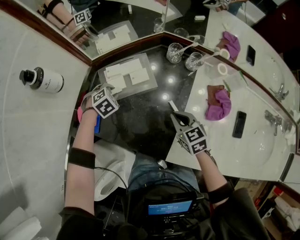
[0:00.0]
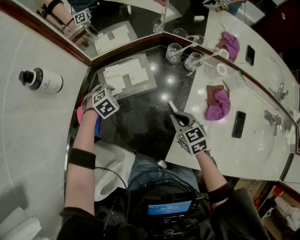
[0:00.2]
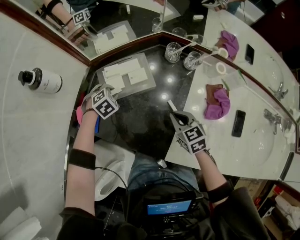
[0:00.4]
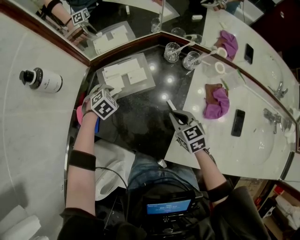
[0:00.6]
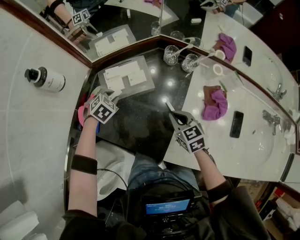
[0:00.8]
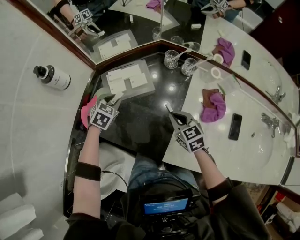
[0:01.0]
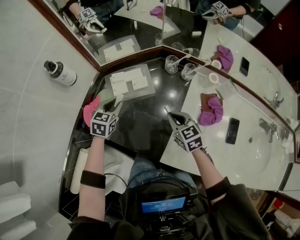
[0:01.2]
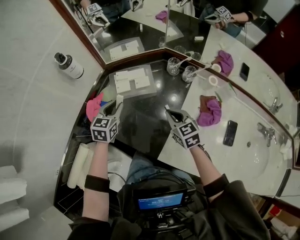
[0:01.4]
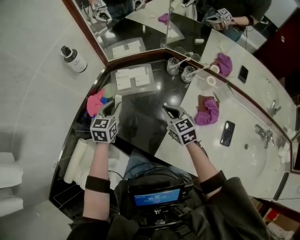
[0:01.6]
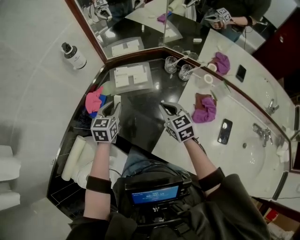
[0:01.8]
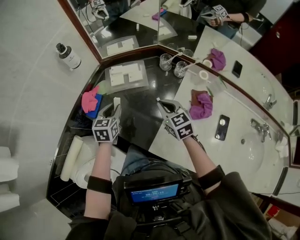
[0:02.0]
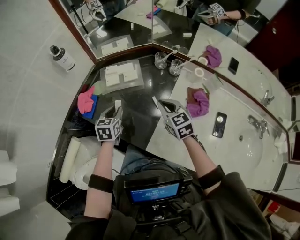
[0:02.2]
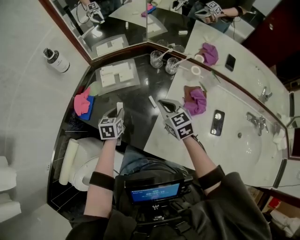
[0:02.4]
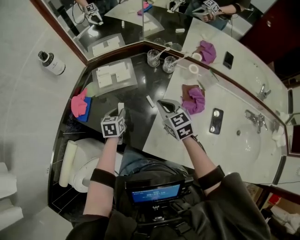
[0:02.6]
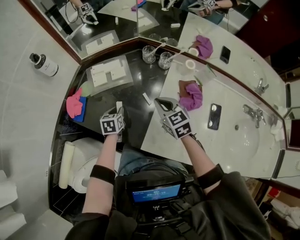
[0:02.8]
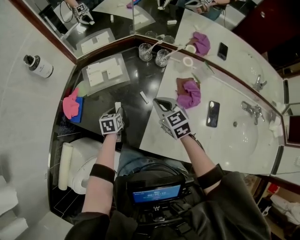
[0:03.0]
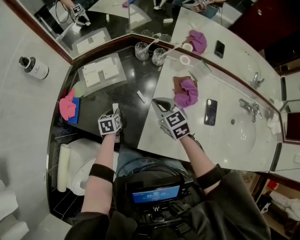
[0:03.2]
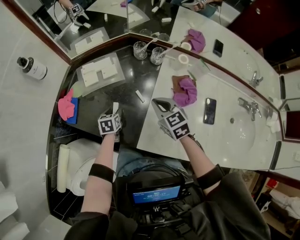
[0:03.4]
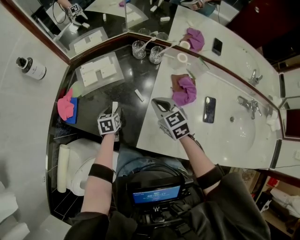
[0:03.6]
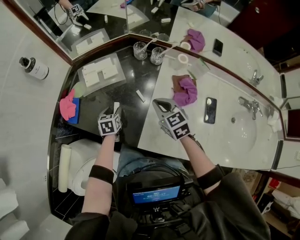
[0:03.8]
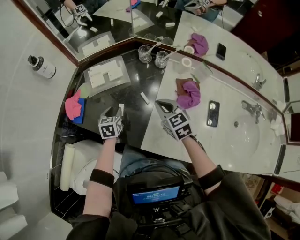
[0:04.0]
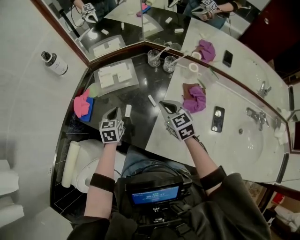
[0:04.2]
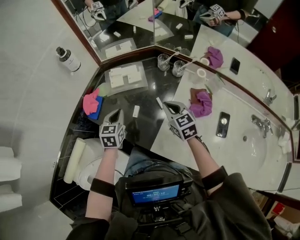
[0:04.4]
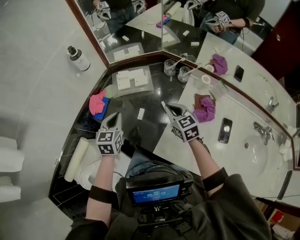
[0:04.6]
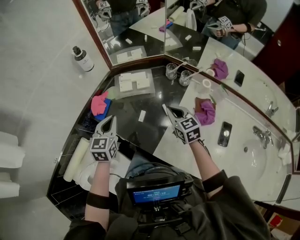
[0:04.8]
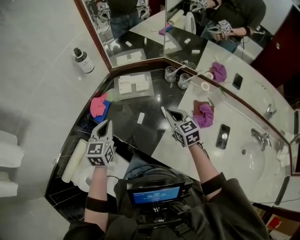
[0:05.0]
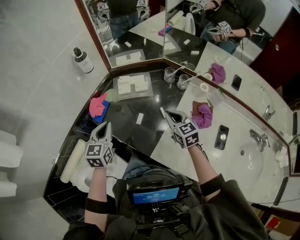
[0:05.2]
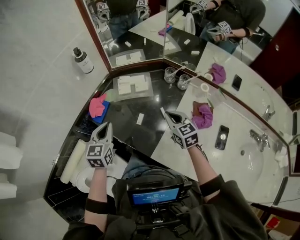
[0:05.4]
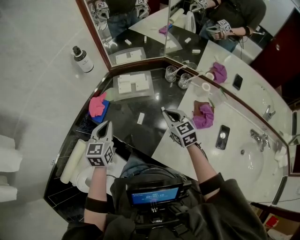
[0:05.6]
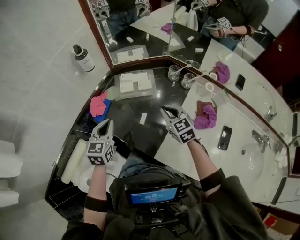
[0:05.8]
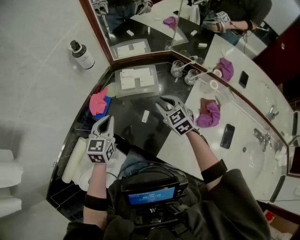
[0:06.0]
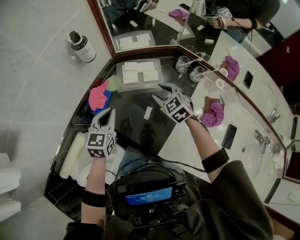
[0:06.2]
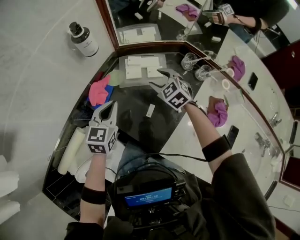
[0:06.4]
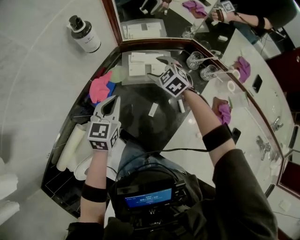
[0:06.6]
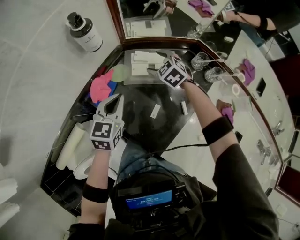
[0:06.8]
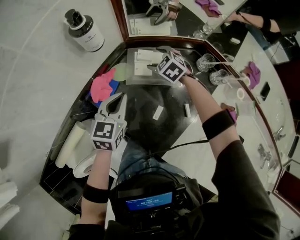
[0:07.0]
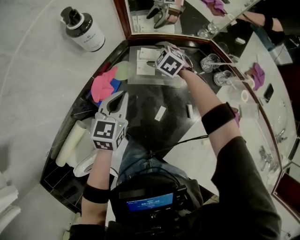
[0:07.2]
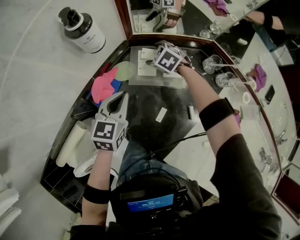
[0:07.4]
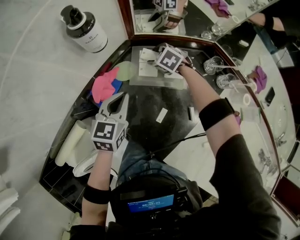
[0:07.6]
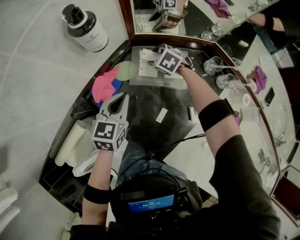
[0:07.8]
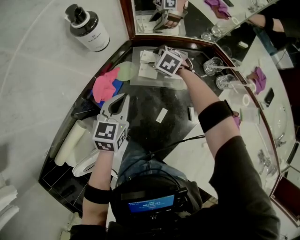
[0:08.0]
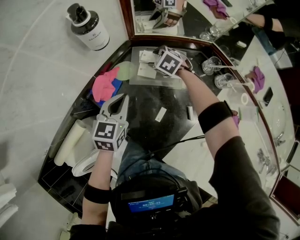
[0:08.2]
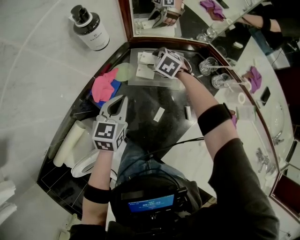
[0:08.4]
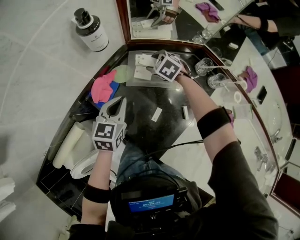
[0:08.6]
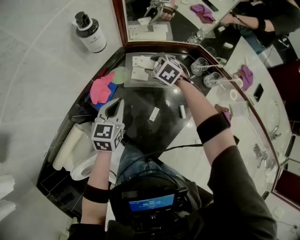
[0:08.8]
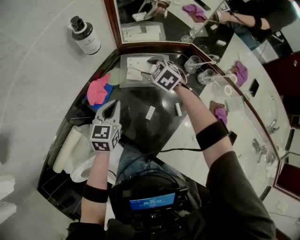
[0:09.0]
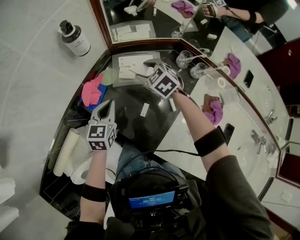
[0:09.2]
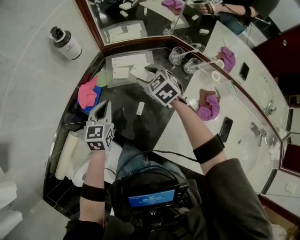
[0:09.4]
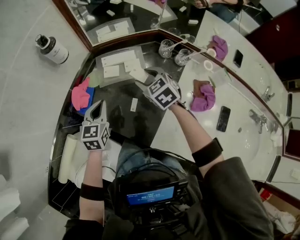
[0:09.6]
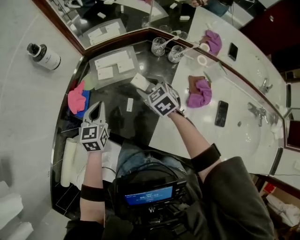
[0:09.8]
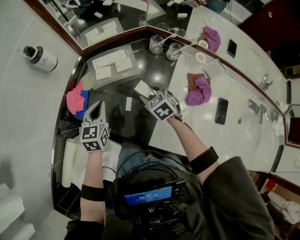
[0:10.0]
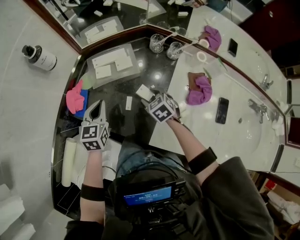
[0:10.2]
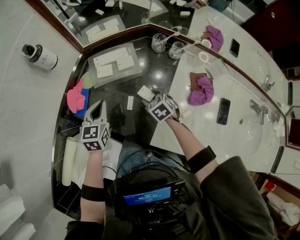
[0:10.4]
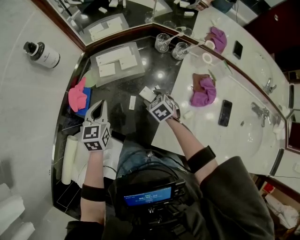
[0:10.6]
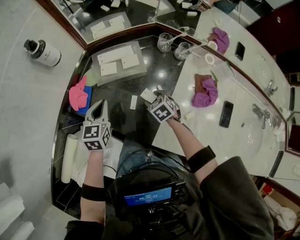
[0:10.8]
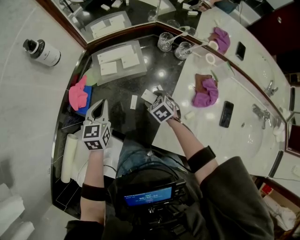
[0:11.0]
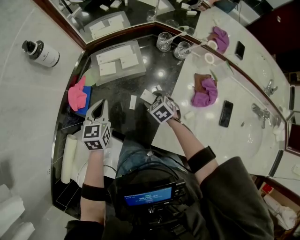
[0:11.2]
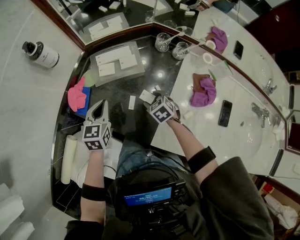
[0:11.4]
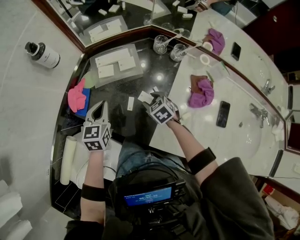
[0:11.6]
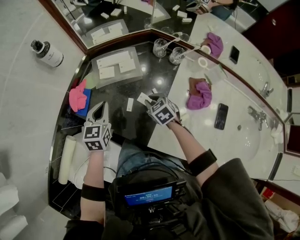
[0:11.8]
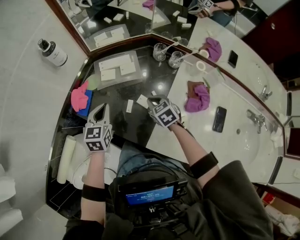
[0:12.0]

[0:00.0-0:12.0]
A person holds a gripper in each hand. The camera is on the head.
0:00.0 to 0:01.6: The right gripper goes approximately 10 cm upward; the left gripper shifts roughly 20 cm upward, and angles its fingers upward, by about 40 degrees.
0:01.6 to 0:03.0: The right gripper travels to the right by roughly 5 cm; the left gripper moves downward and to the right, approximately 20 cm, and changes its angle by approximately 30 degrees.
0:03.0 to 0:04.4: The left gripper shifts about 15 cm upward, and rotates approximately 20 degrees.
0:04.4 to 0:06.0: The right gripper is displaced forward and to the left by some 10 cm, while the left gripper travels to the left and upward by approximately 10 cm.
0:06.0 to 0:07.6: The left gripper moves forward and downward, some 15 cm; the right gripper heads forward and downward, covering roughly 30 cm, swivels roughly 40 degrees, and opens up.
0:07.6 to 0:09.0: The right gripper travels upward and backward by approximately 15 cm.
0:09.0 to 0:10.4: The right gripper moves backward, to the right and downward, roughly 25 cm, and rotates approximately 40 degrees. The left gripper goes roughly 5 cm to the right.
0:10.4 to 0:12.0: The right gripper is displaced upward by approximately 5 cm, and closes up.

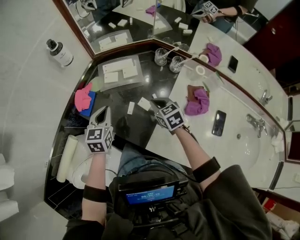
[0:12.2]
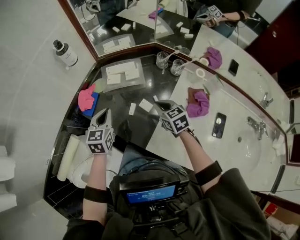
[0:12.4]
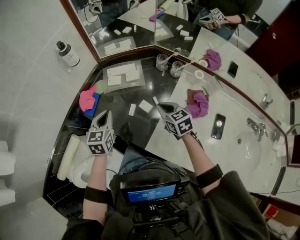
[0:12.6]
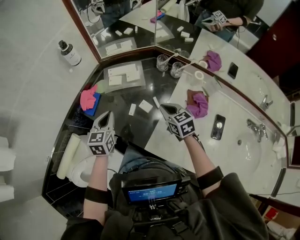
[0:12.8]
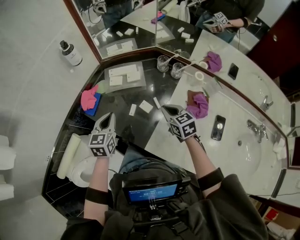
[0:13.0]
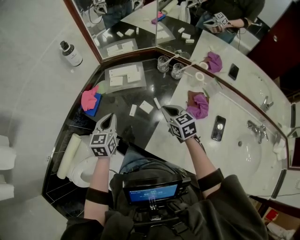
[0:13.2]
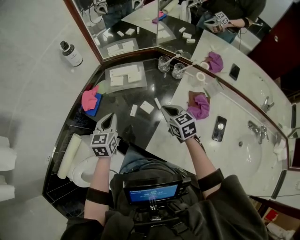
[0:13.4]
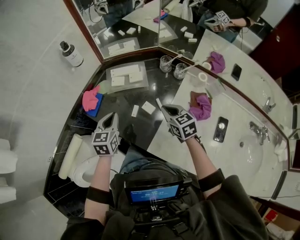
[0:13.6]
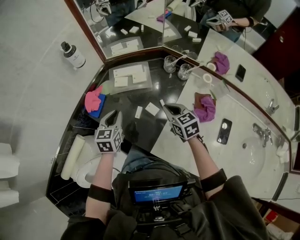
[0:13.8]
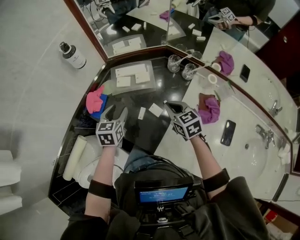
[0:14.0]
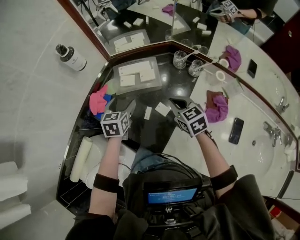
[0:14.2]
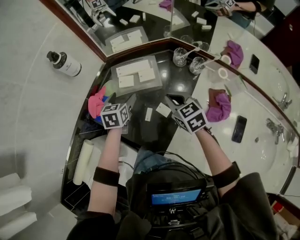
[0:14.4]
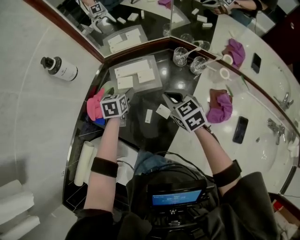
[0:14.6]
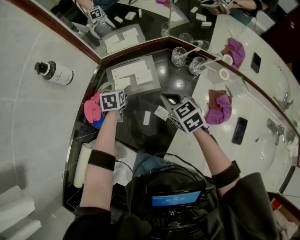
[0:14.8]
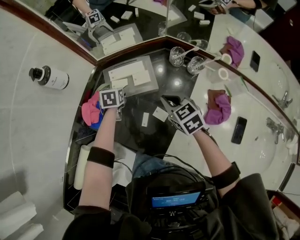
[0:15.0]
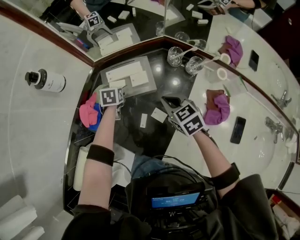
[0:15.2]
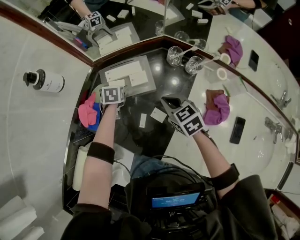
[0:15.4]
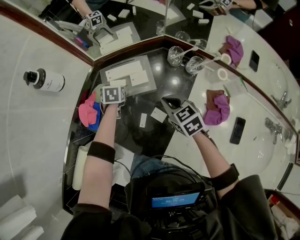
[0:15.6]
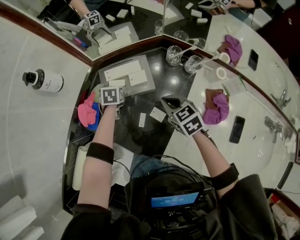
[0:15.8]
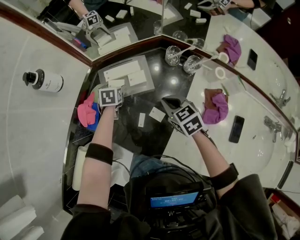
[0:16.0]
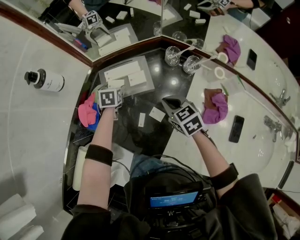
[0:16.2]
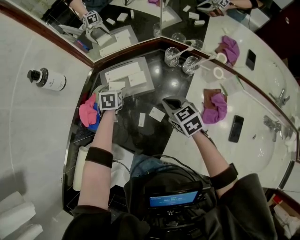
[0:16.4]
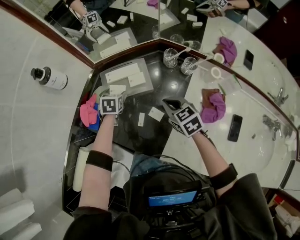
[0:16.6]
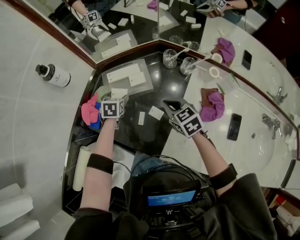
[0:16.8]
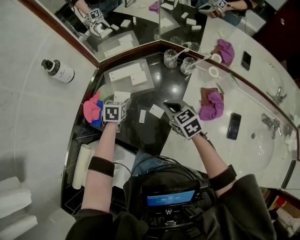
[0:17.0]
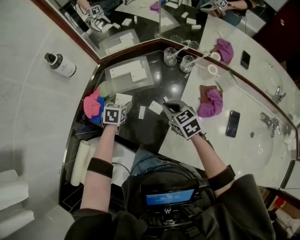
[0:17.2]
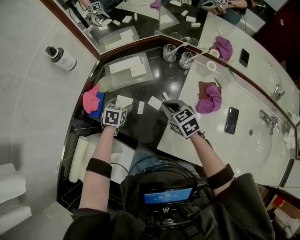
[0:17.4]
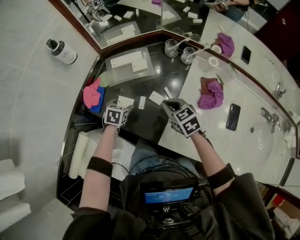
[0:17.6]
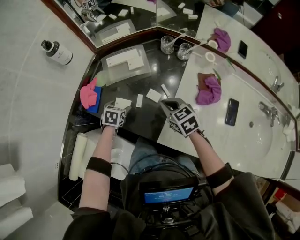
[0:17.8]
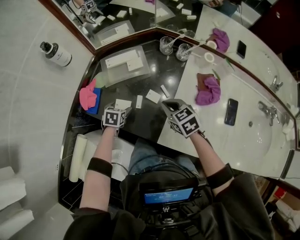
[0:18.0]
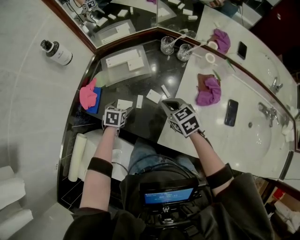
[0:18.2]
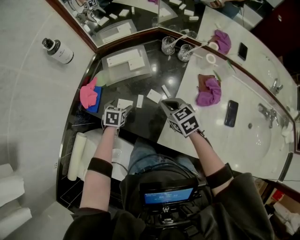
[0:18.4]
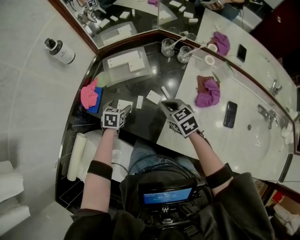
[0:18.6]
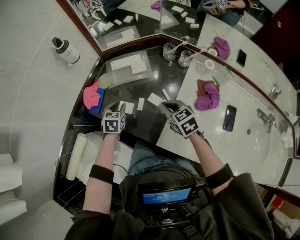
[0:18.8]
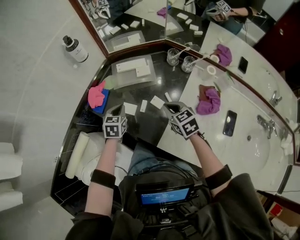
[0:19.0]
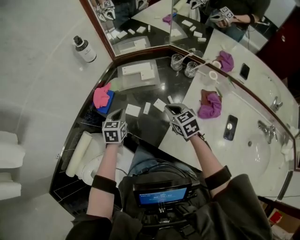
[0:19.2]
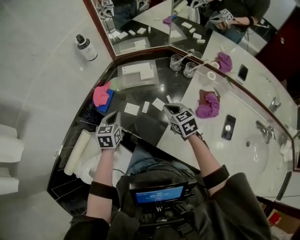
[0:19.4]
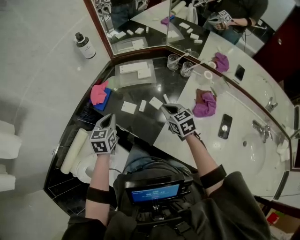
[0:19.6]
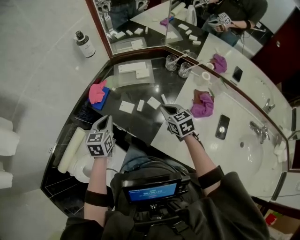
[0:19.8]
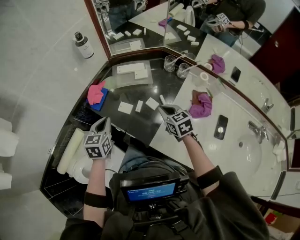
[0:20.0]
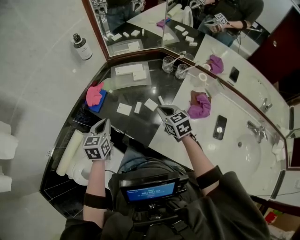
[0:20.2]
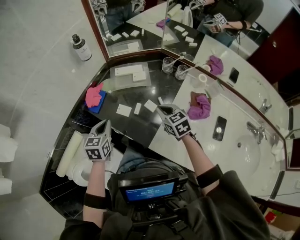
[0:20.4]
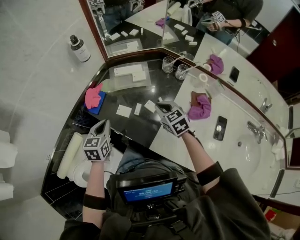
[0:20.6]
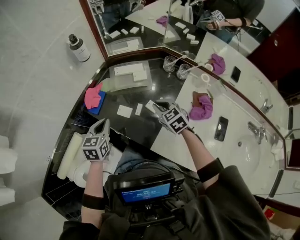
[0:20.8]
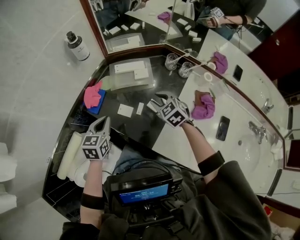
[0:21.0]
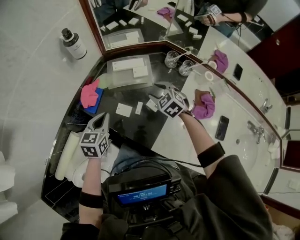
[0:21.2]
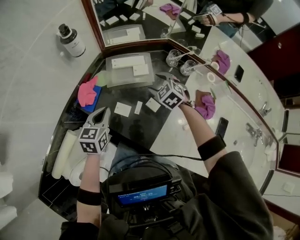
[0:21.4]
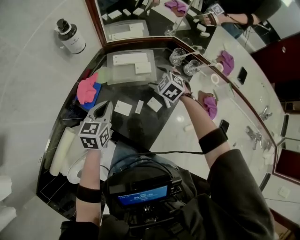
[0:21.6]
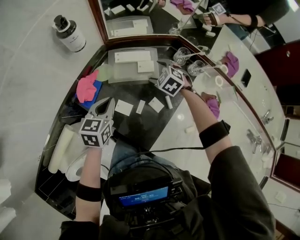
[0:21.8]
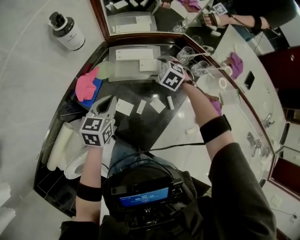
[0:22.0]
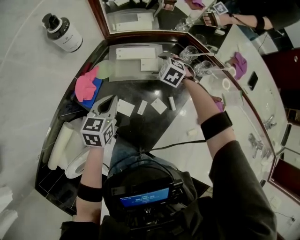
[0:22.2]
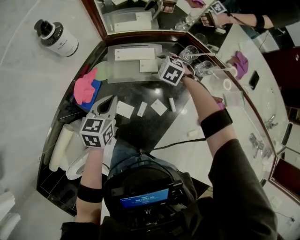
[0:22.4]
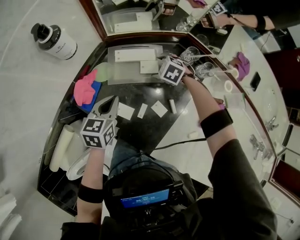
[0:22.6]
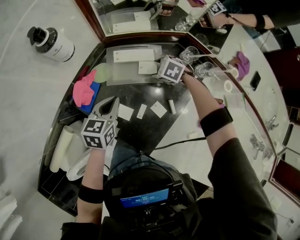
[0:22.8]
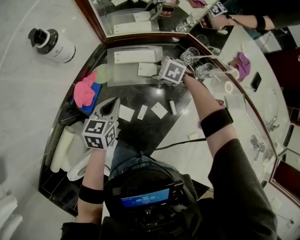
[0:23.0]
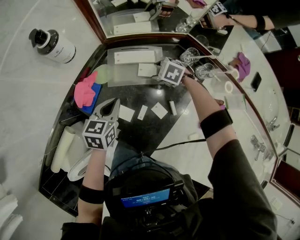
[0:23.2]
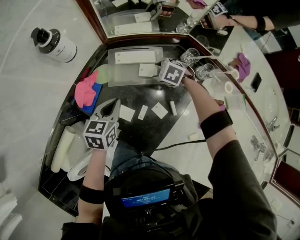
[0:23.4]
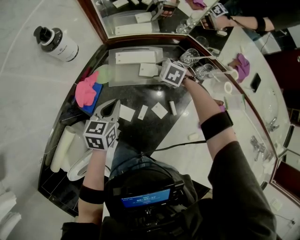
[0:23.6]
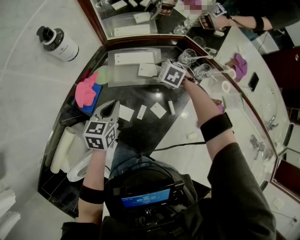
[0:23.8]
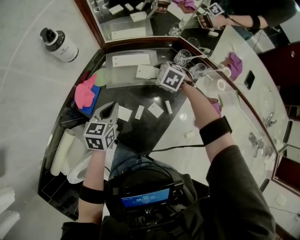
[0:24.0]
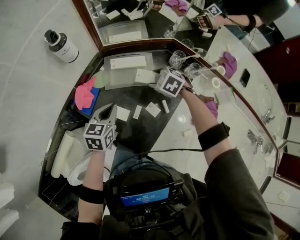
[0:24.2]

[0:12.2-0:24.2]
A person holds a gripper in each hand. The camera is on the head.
0:12.2 to 0:13.8: The right gripper changes place by approximately 5 cm.
0:13.8 to 0:15.2: The right gripper goes approximately 10 cm forward. The left gripper heads forward and downward, covering about 30 cm, rotates some 30 degrees, and opens.
0:15.2 to 0:16.6: The grippers move only a little.
0:16.6 to 0:18.2: The left gripper heads backward, covering some 15 cm. Meanwhile the right gripper shifts some 10 cm backward.
0:18.2 to 0:19.8: The left gripper shifts some 25 cm upward and backward, rotates approximately 30 degrees, and closes. Meanwhile the right gripper ends up about 5 cm from where it was.
0:19.8 to 0:21.2: The left gripper shifts about 5 cm forward. Meanwhile the right gripper shifts about 15 cm forward, changes its angle by about 30 degrees, and opens.
0:21.2 to 0:22.6: The left gripper is displaced forward, to the right and downward by about 15 cm. Meanwhile the right gripper heads forward and downward, covering approximately 20 cm, rotates approximately 30 degrees, and opens its fingers.
0:22.6 to 0:24.2: The right gripper moves upward and backward, roughly 10 cm.
